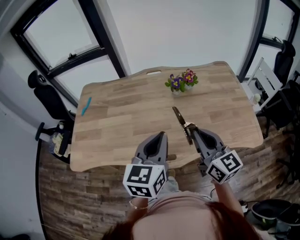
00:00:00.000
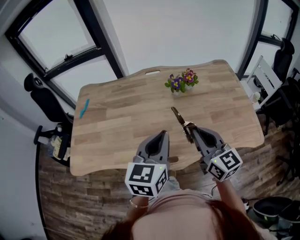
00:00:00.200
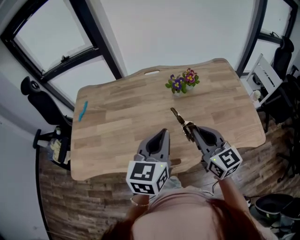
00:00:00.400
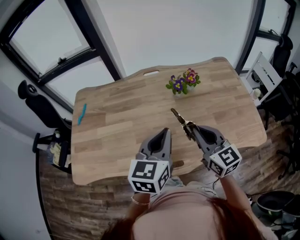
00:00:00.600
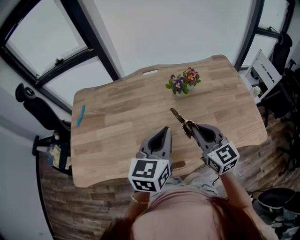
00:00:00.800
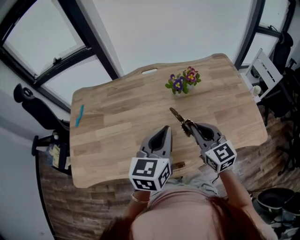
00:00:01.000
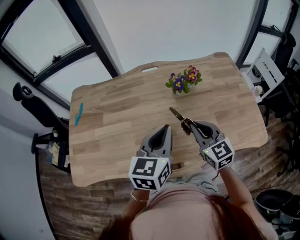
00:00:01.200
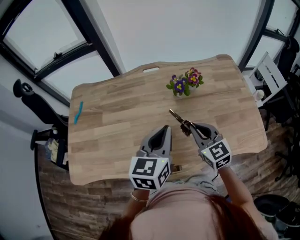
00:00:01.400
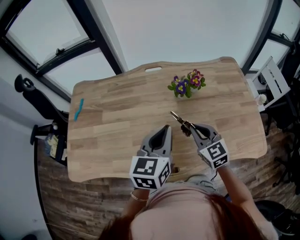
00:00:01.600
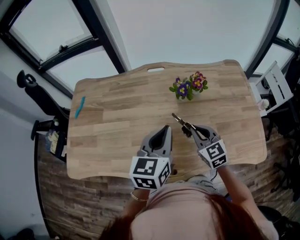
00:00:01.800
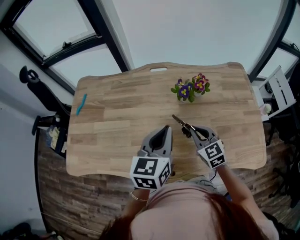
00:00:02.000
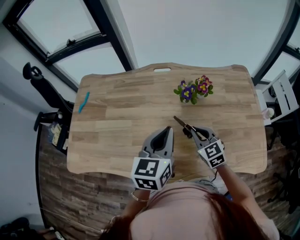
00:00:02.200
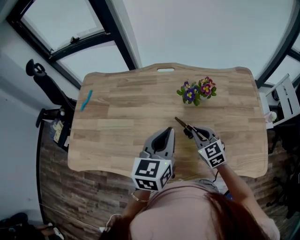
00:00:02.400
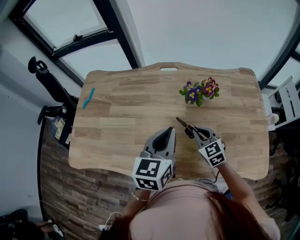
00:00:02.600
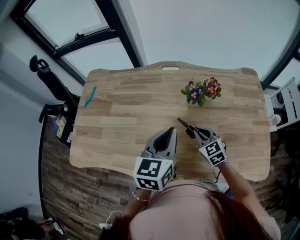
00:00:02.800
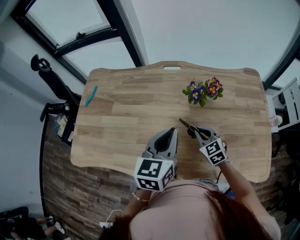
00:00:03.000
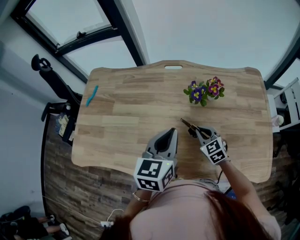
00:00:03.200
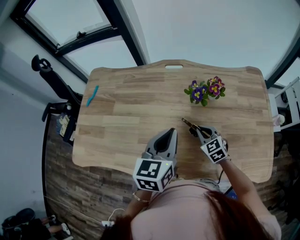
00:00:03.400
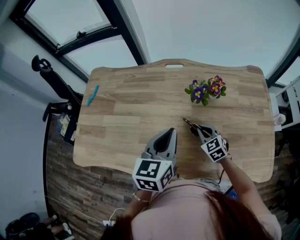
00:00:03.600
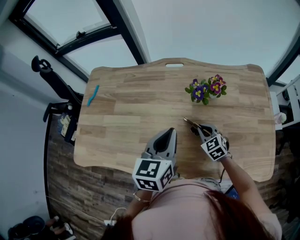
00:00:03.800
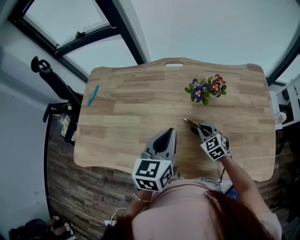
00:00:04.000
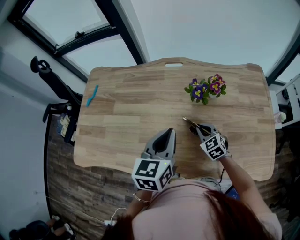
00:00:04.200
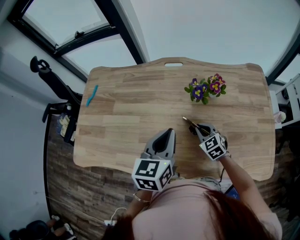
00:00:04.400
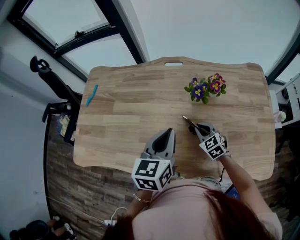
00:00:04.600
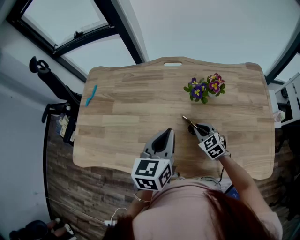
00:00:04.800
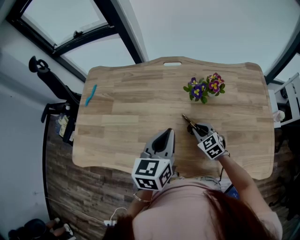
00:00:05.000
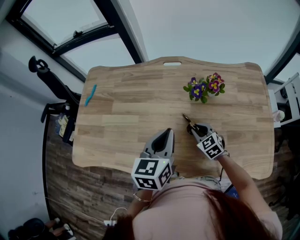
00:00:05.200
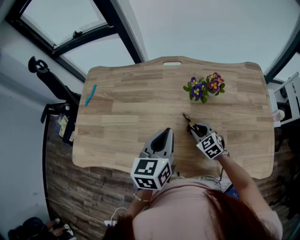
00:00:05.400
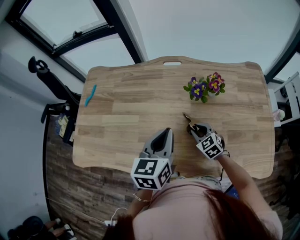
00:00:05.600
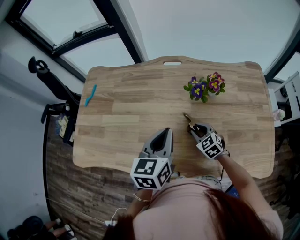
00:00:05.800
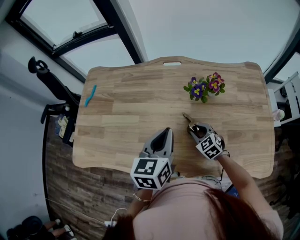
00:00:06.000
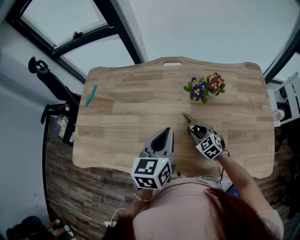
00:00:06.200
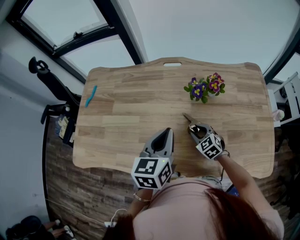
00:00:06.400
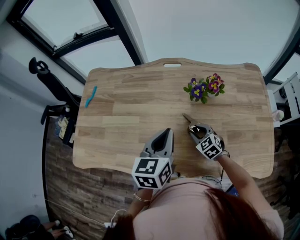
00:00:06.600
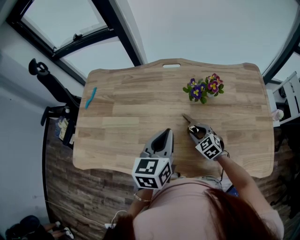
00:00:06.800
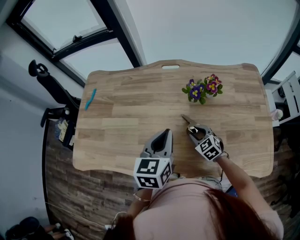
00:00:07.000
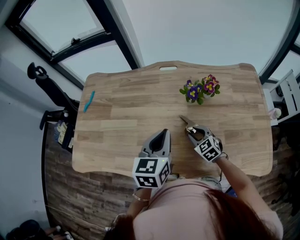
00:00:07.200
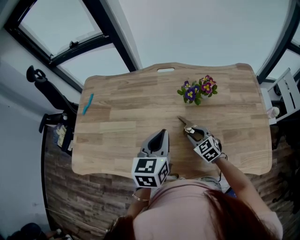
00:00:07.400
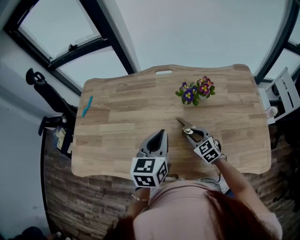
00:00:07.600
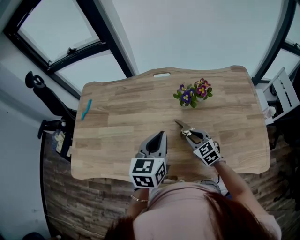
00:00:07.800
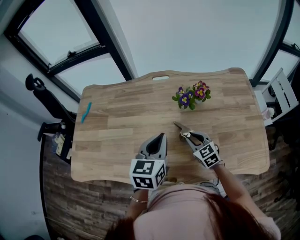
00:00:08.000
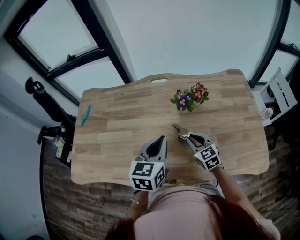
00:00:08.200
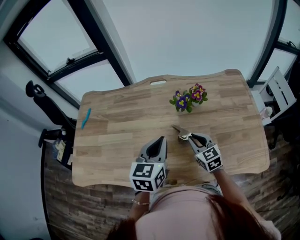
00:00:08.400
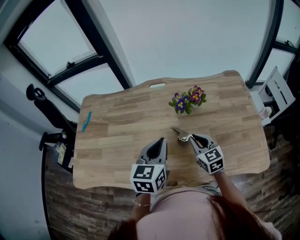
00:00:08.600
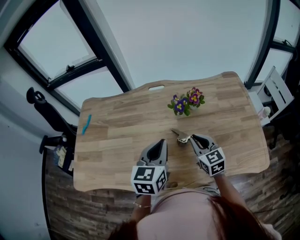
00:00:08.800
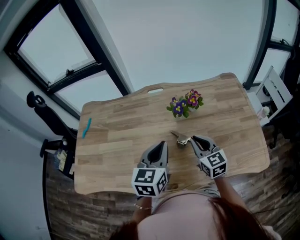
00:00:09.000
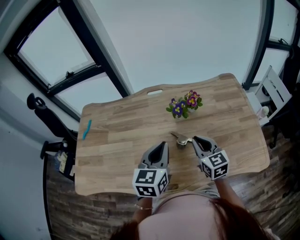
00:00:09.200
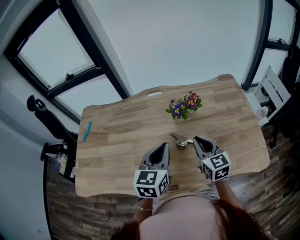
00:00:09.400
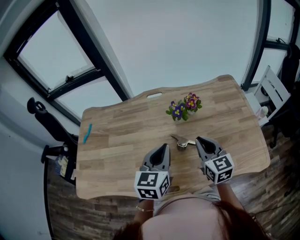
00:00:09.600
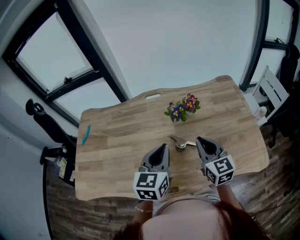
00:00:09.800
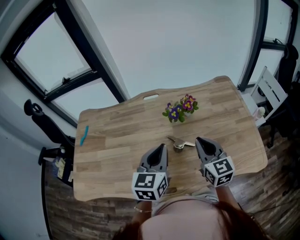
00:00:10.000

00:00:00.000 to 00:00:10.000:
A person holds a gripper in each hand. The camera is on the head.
00:00:00.000 to 00:00:01.400: The left gripper is displaced forward by some 15 cm, while the right gripper goes roughly 15 cm forward and downward, and rotates about 30 degrees.
00:00:01.400 to 00:00:02.800: The right gripper heads downward and forward, covering some 15 cm.
00:00:02.800 to 00:00:04.200: The right gripper shifts some 5 cm downward.
00:00:04.200 to 00:00:05.800: The right gripper opens.
00:00:05.800 to 00:00:07.200: Both grippers stay put.
00:00:07.200 to 00:00:08.600: The right gripper is displaced upward by about 10 cm, and swivels roughly 30 degrees.
00:00:08.600 to 00:00:10.000: The right gripper goes about 10 cm upward.

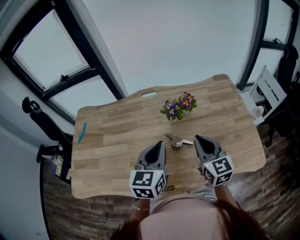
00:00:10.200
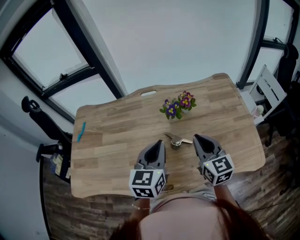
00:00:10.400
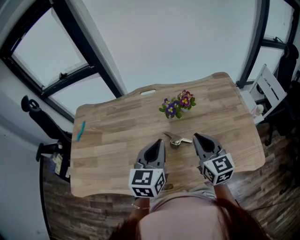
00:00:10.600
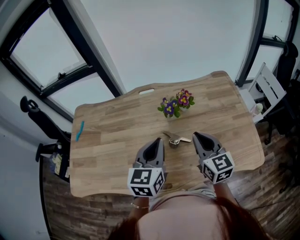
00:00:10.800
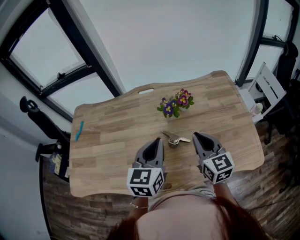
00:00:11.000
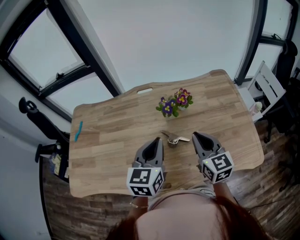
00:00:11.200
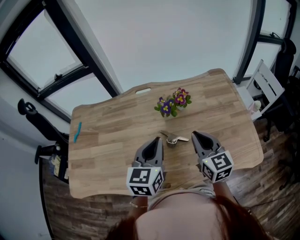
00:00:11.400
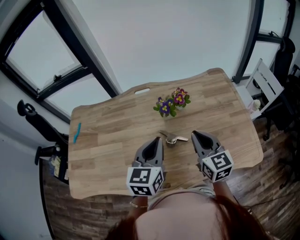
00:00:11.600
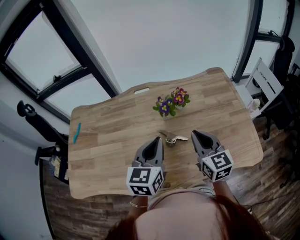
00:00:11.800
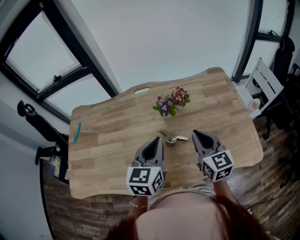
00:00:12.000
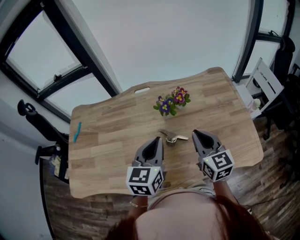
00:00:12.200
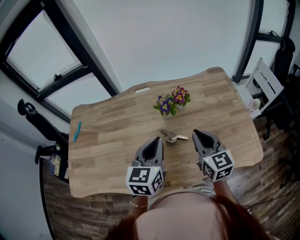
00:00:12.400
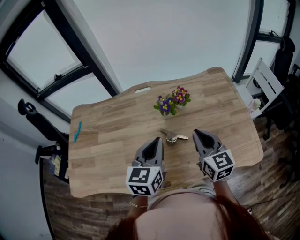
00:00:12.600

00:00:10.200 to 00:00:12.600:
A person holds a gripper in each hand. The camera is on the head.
00:00:10.200 to 00:00:11.400: The grippers move only a little.
00:00:11.400 to 00:00:12.600: Neither gripper changes place.

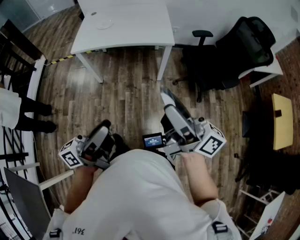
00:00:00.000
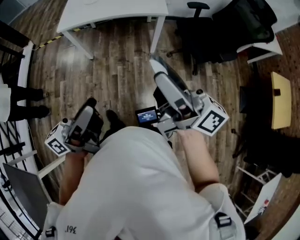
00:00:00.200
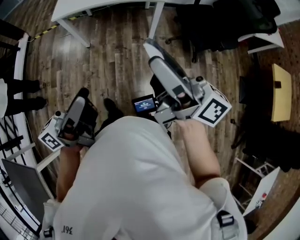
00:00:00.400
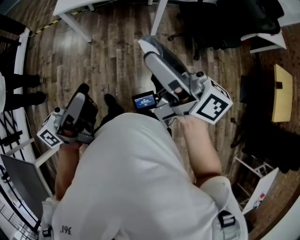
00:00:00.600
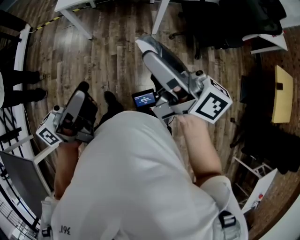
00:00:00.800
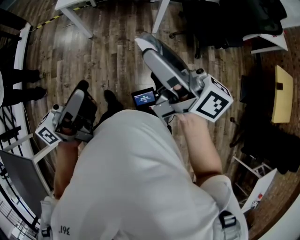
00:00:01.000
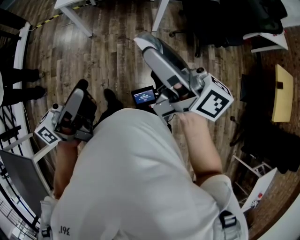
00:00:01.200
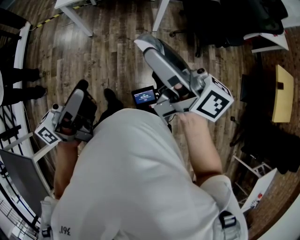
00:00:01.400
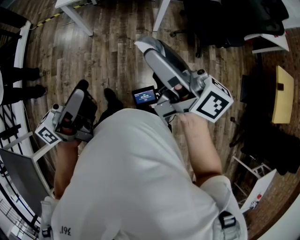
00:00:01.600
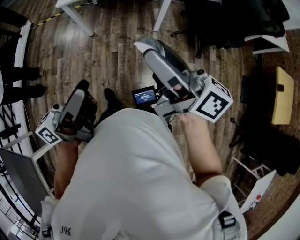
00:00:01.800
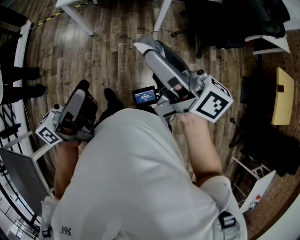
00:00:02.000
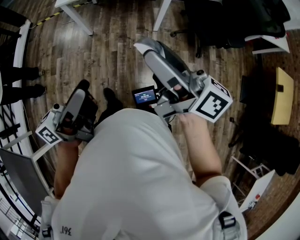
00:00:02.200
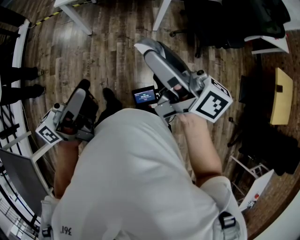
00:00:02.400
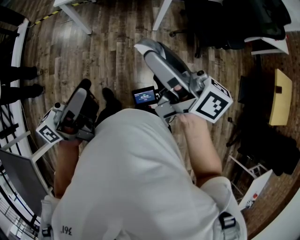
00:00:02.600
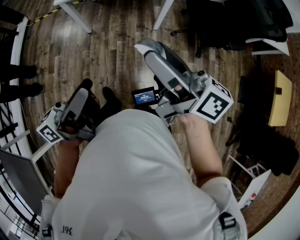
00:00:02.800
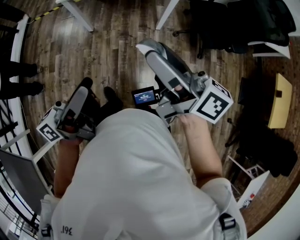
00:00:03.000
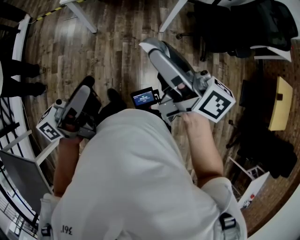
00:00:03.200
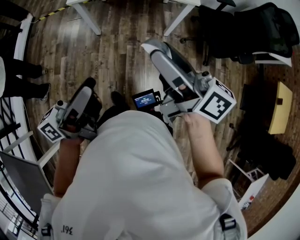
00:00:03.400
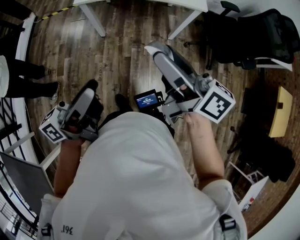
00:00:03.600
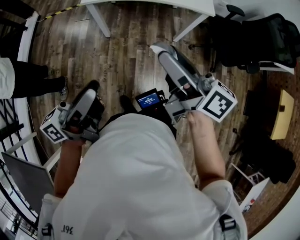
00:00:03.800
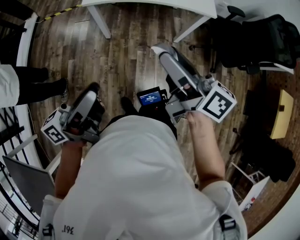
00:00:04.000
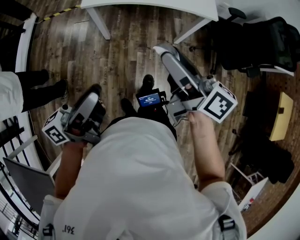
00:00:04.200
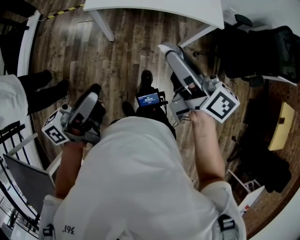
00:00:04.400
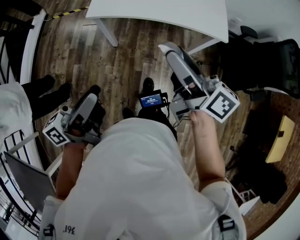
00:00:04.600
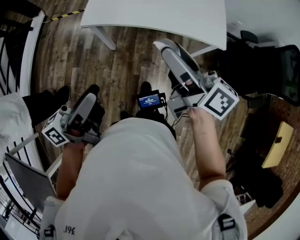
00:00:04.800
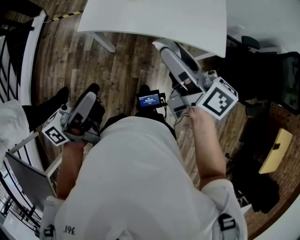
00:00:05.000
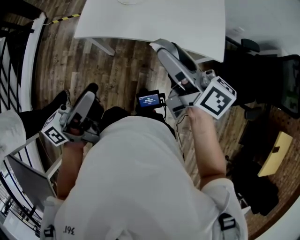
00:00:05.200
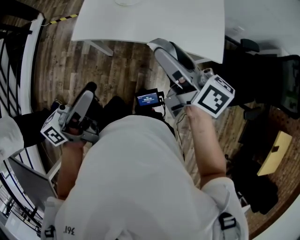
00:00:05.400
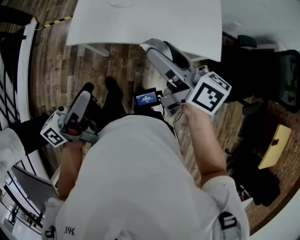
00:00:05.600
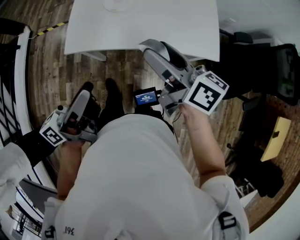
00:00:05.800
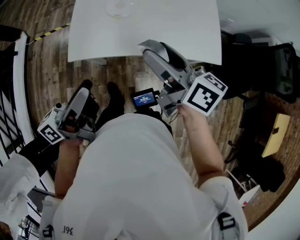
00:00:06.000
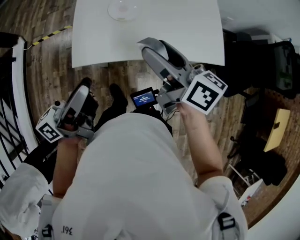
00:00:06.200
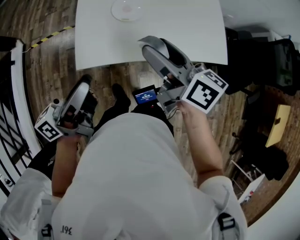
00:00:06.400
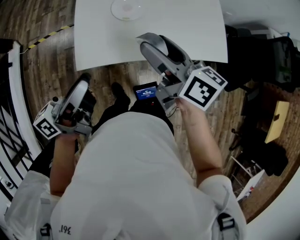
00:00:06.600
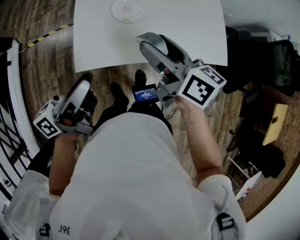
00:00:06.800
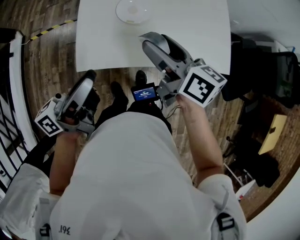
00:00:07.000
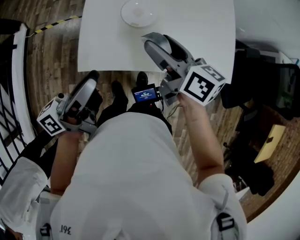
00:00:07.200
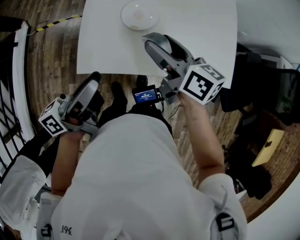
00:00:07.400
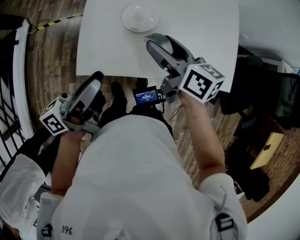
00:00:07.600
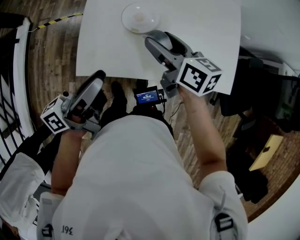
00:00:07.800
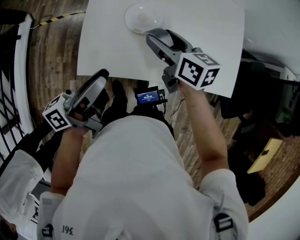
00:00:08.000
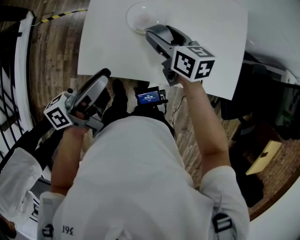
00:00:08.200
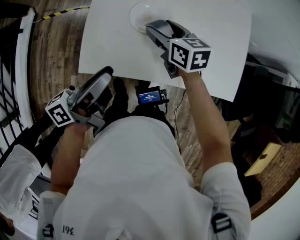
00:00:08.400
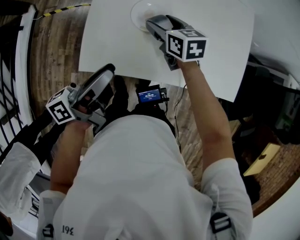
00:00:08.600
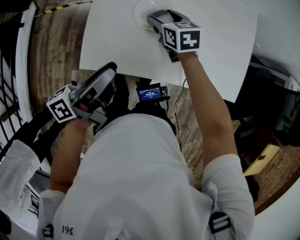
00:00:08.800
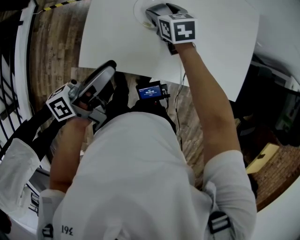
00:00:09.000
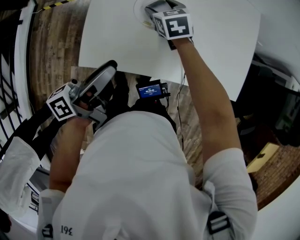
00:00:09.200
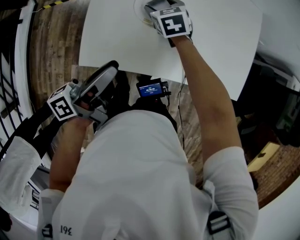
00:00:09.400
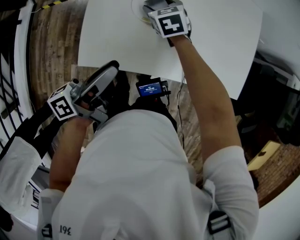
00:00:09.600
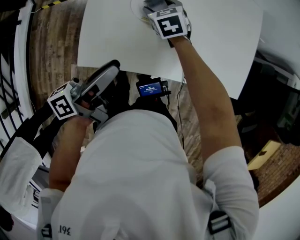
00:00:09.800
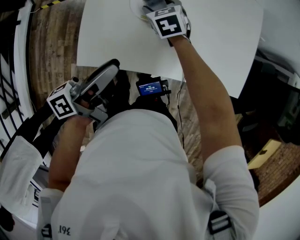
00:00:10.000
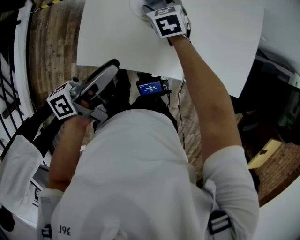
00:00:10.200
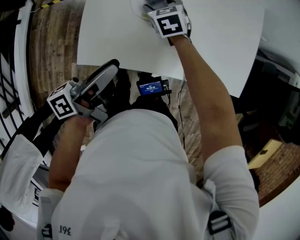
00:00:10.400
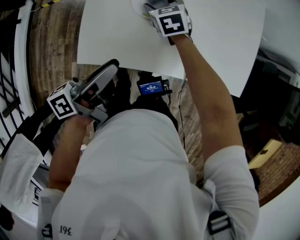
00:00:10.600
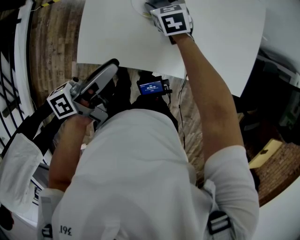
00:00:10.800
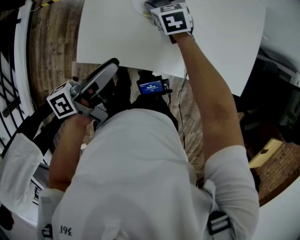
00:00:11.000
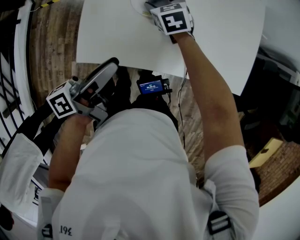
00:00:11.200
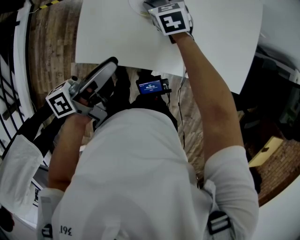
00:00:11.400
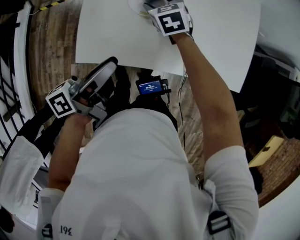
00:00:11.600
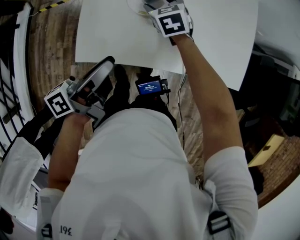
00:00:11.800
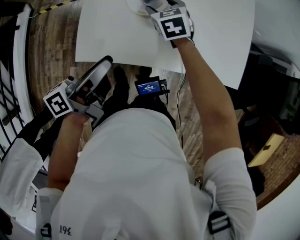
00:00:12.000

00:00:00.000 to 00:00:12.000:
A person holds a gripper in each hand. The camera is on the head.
00:00:00.000 to 00:00:01.600: The right gripper shifts approximately 5 cm downward.
00:00:01.600 to 00:00:03.000: The two grippers go approximately 5 cm forward.
00:00:03.000 to 00:00:04.400: The left gripper moves to the left and forward, about 25 cm. The right gripper goes roughly 25 cm forward and to the left.
00:00:04.400 to 00:00:06.000: The grippers both shift forward by approximately 30 cm.
00:00:06.000 to 00:00:07.600: The right gripper is displaced forward and downward by some 20 cm. Meanwhile the left gripper travels forward by about 15 cm.
00:00:07.600 to 00:00:09.000: The right gripper moves downward and forward, approximately 20 cm, and turns by approximately 40 degrees. Meanwhile the left gripper travels downward by some 5 cm.
00:00:09.000 to 00:00:12.000: There are only small adjustments of the grippers.
